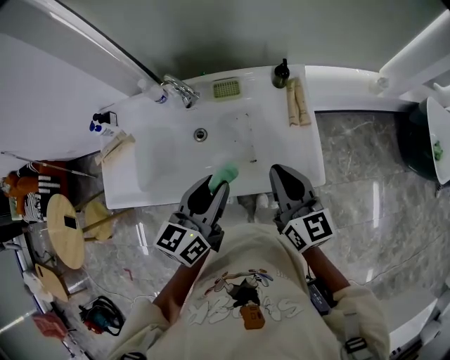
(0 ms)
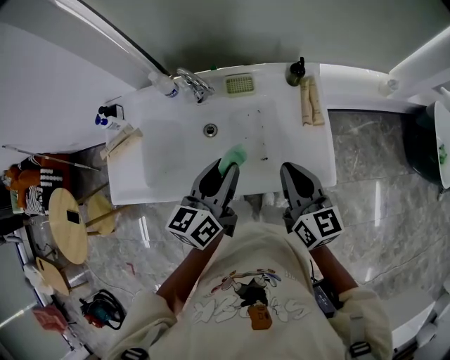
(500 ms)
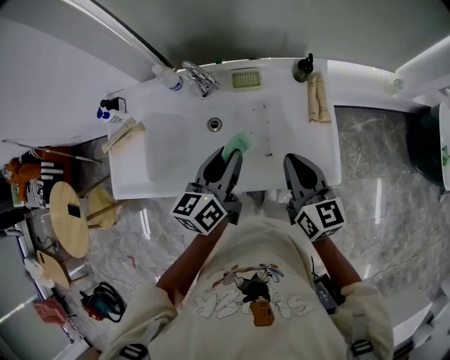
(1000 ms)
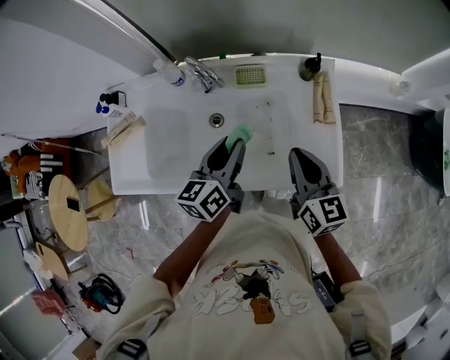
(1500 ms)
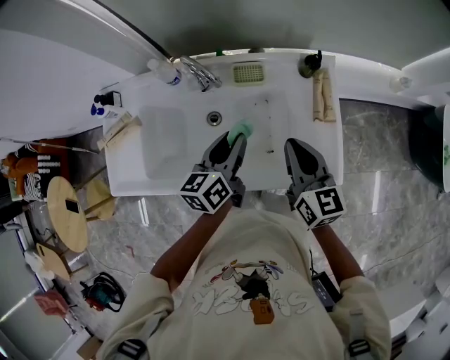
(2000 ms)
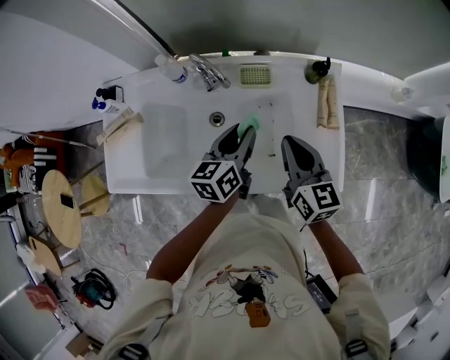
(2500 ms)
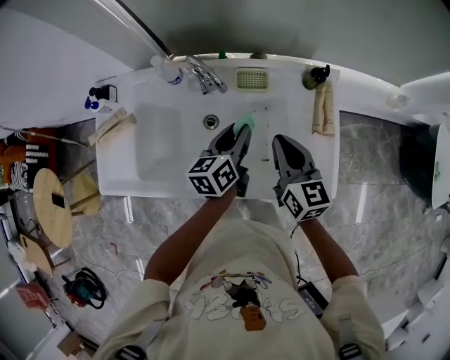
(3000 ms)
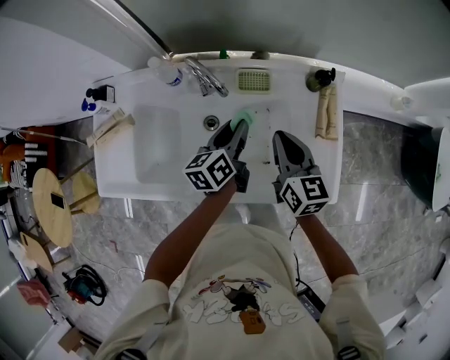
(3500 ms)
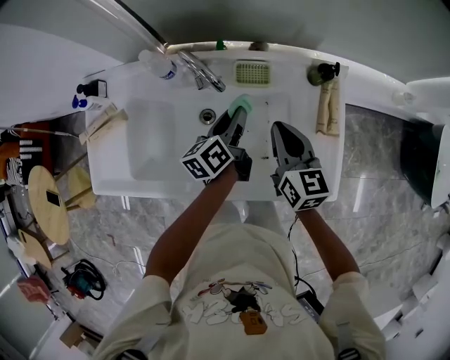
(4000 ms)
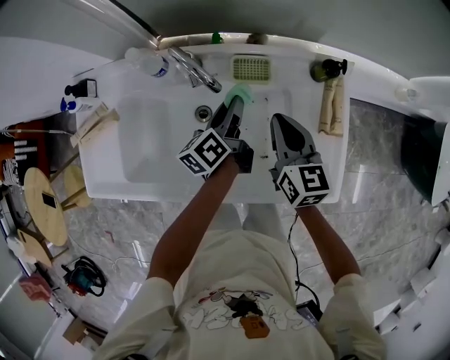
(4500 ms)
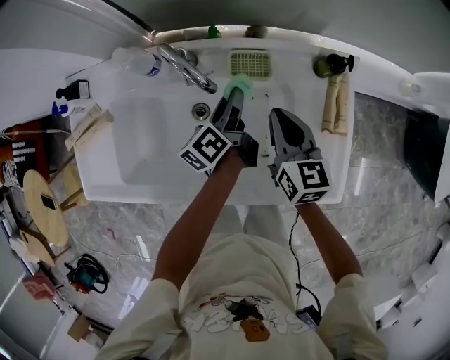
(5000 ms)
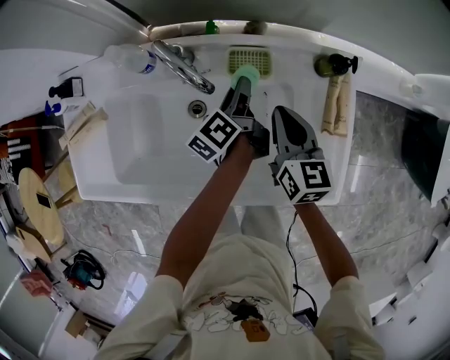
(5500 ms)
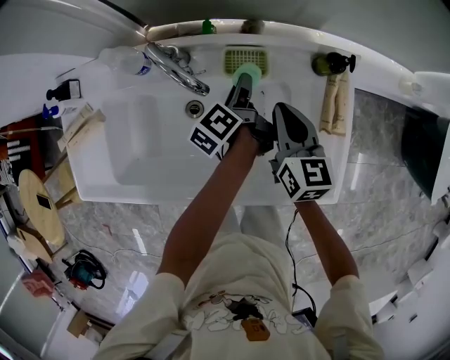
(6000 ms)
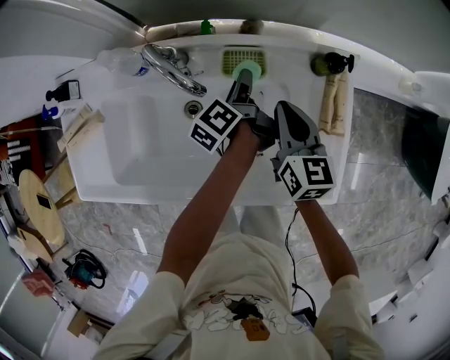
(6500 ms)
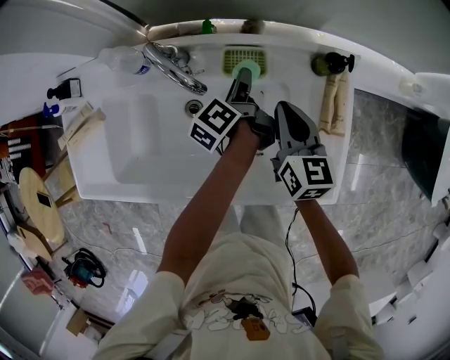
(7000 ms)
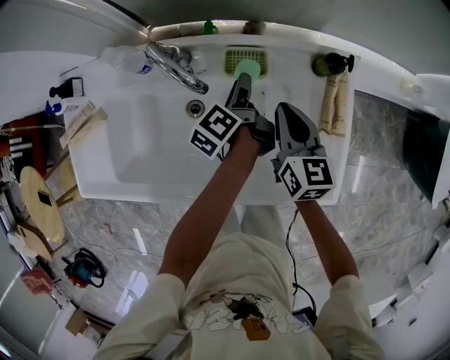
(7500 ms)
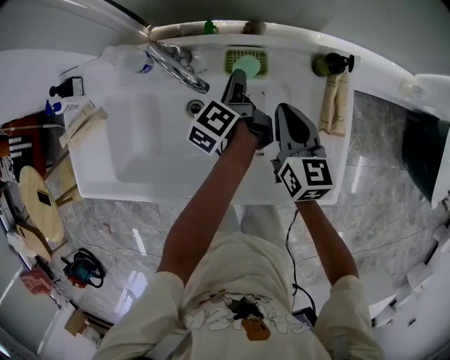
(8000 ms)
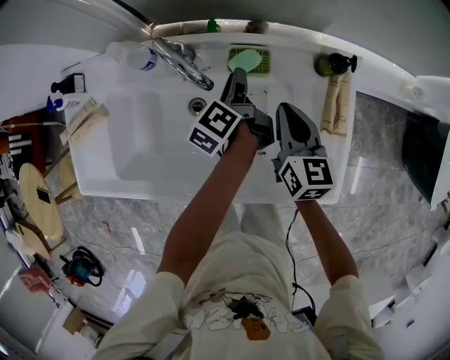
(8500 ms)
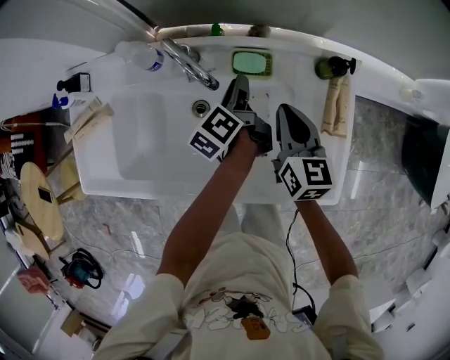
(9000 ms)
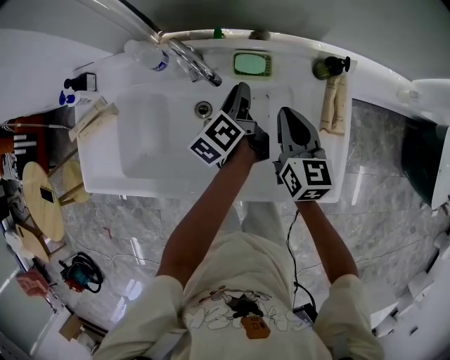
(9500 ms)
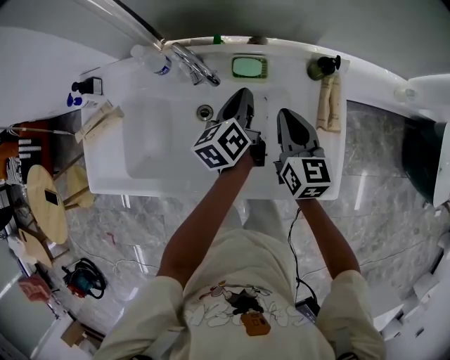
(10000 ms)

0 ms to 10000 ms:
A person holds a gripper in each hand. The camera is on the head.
0 ms to 2000 ms: The left gripper goes some 15 cm forward and downward; the right gripper shifts some 10 cm forward and downward.
2000 ms to 4000 ms: The grippers both shift forward and downward by roughly 10 cm. The left gripper swivels about 20 degrees.
4000 ms to 6000 ms: The right gripper is displaced downward by approximately 5 cm. Meanwhile the left gripper heads forward and downward, covering some 10 cm, and turns by some 30 degrees.
6000 ms to 8000 ms: The grippers make only small movements.
8000 ms to 10000 ms: The left gripper heads upward and backward, covering approximately 10 cm, turns by about 30 degrees, and closes.

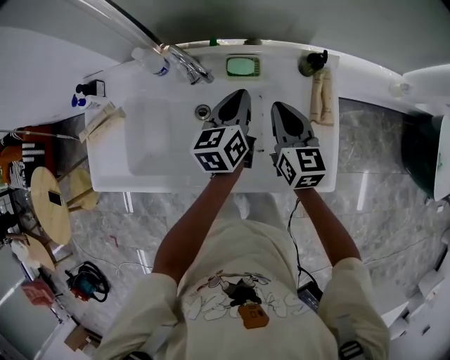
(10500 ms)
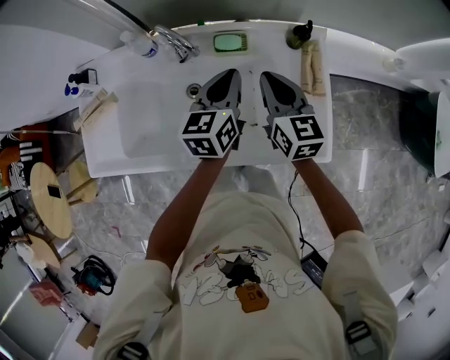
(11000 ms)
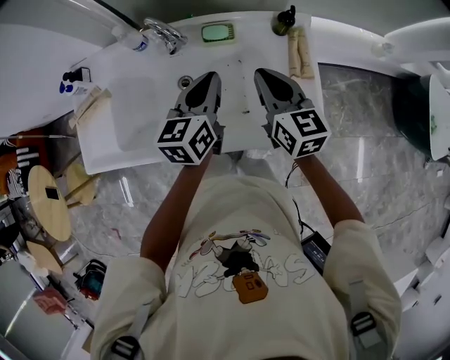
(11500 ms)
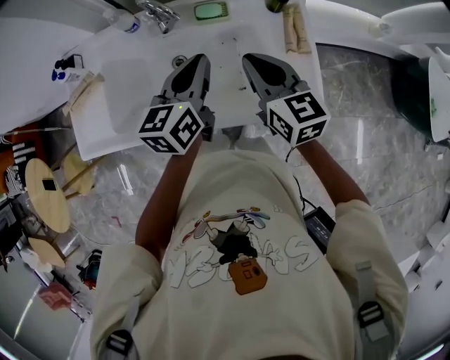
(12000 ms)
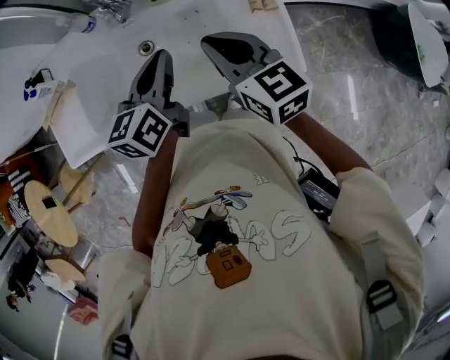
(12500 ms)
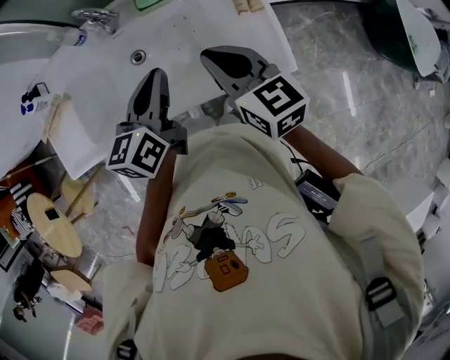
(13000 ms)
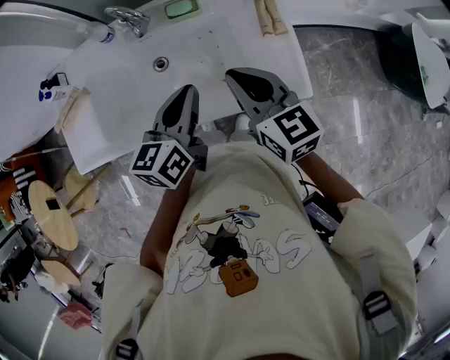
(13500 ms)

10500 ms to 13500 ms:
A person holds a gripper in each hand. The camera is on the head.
10500 ms to 12000 ms: Both grippers move backward and upward, roughly 15 cm.
12000 ms to 13500 ms: Both grippers travel together backward, some 10 cm.

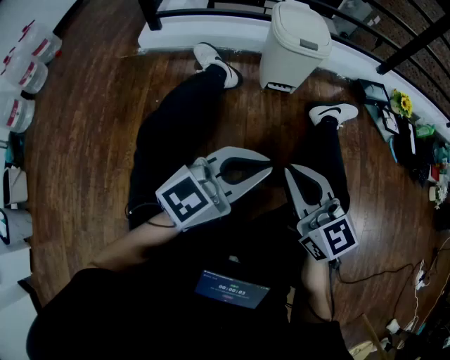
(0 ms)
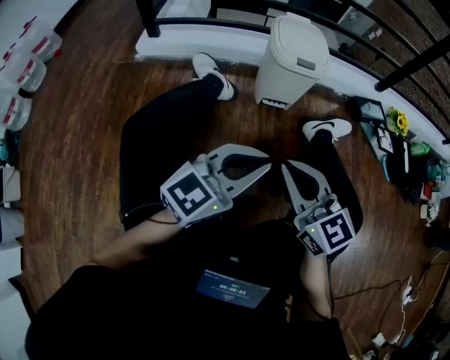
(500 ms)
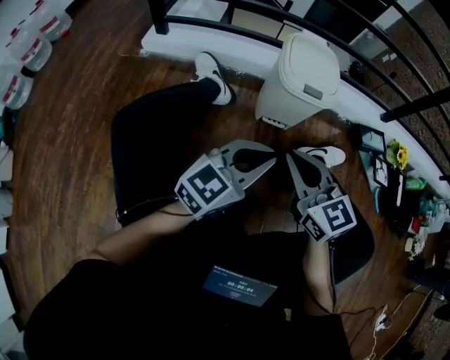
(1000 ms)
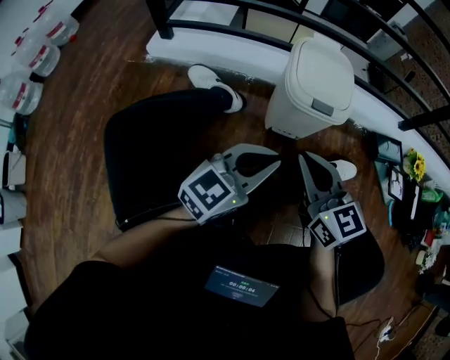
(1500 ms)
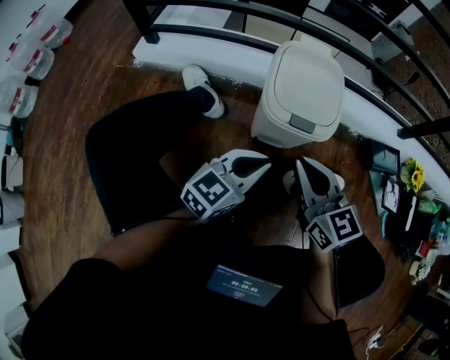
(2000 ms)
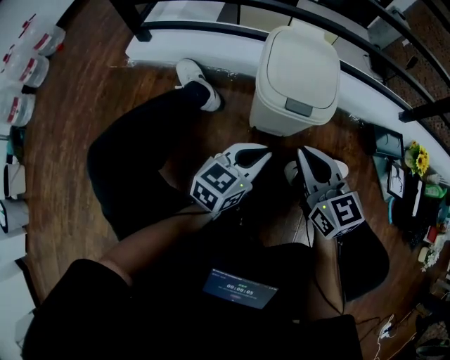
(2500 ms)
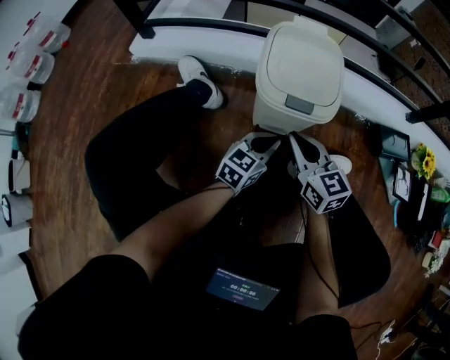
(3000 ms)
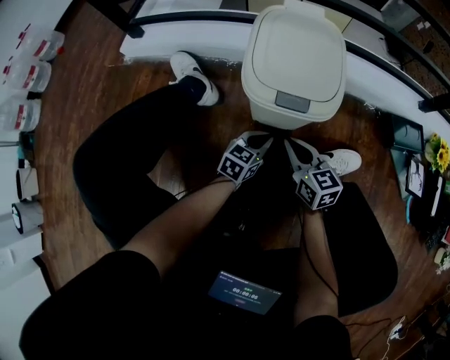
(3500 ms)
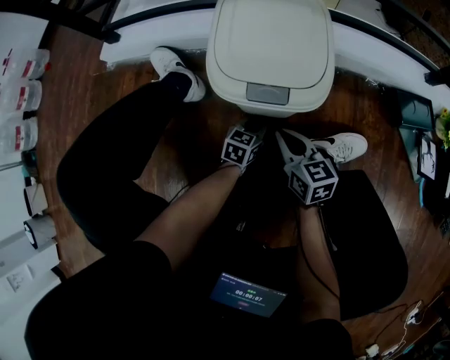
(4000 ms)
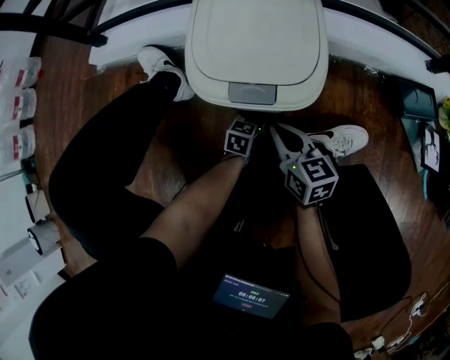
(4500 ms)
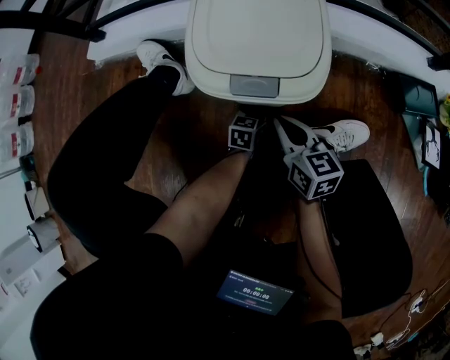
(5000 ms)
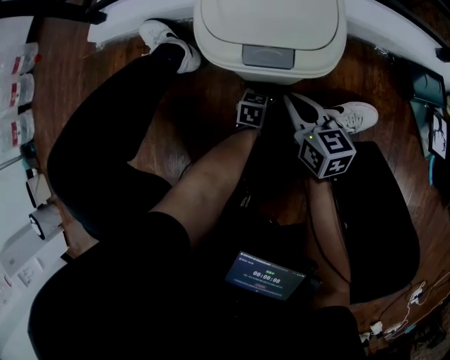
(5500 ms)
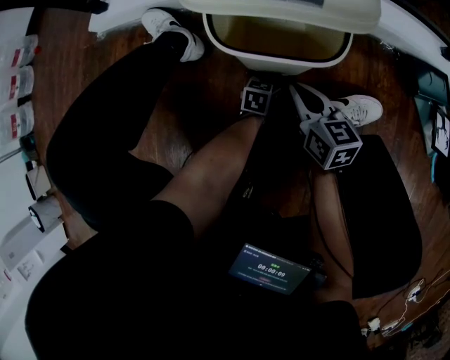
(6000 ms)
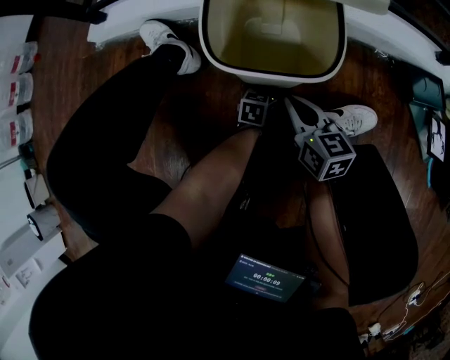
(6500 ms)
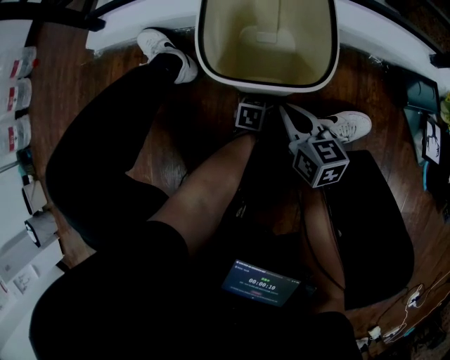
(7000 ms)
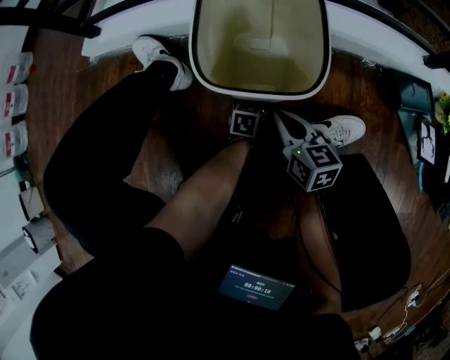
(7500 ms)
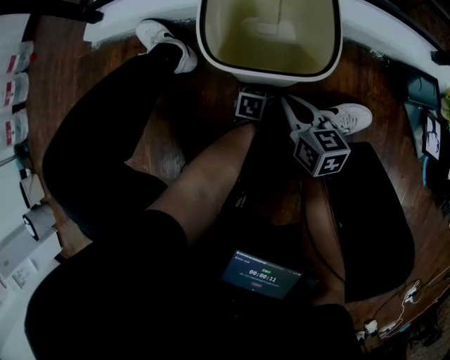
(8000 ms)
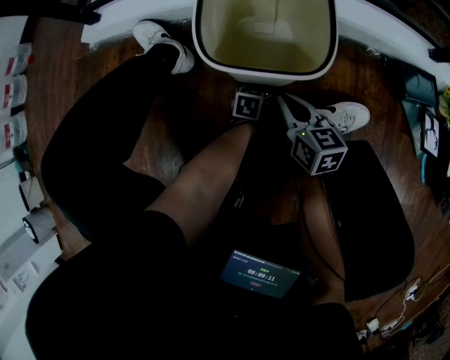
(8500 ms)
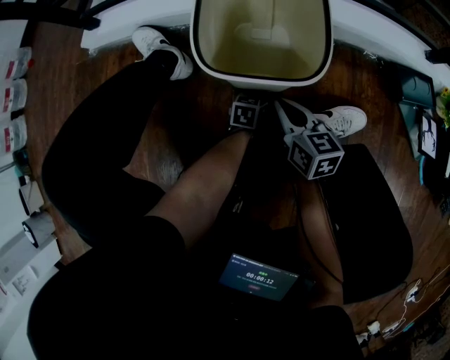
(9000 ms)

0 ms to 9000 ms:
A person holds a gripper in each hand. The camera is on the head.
0 ms to 2000 ms: The two grippers travel together, forward, some 40 cm. The left gripper changes its angle by some 20 degrees.
2000 ms to 4500 ms: The left gripper heads downward and forward, covering roughly 40 cm, and rotates some 30 degrees, while the right gripper is displaced downward by approximately 30 cm, and rotates approximately 20 degrees.
4500 ms to 7000 ms: There are only small adjustments of the grippers.
7000 ms to 9000 ms: Neither gripper changes place.

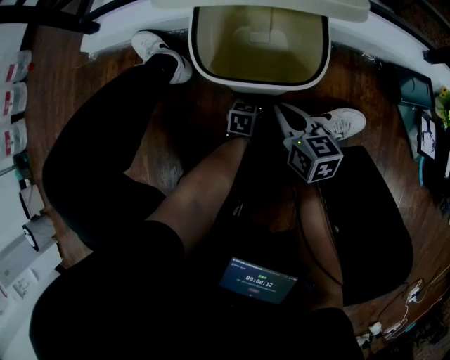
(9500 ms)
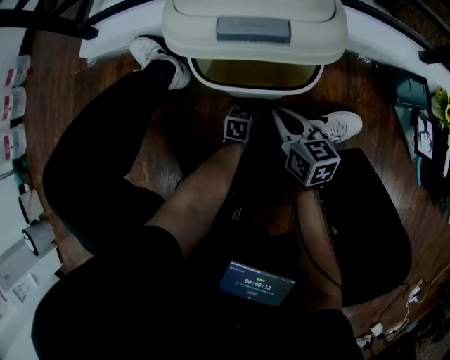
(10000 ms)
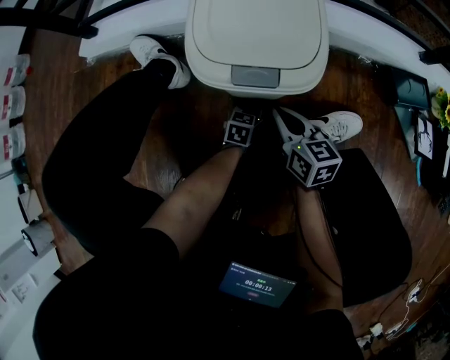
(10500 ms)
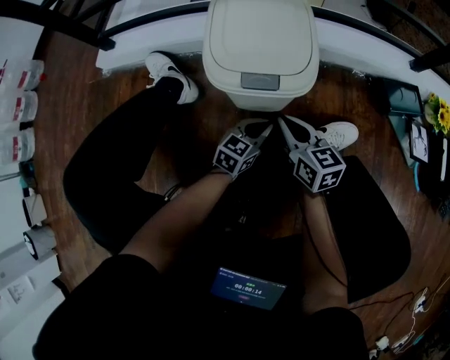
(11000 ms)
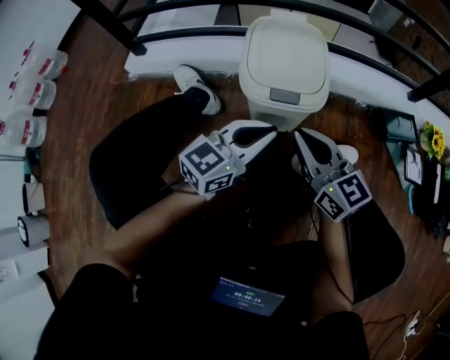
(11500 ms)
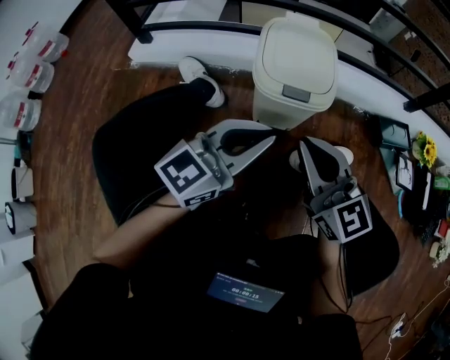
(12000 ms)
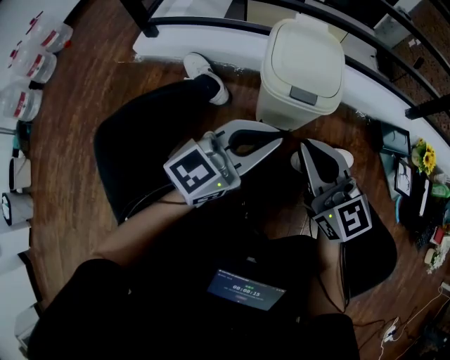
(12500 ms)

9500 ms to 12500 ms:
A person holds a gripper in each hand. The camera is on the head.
9500 ms to 11000 ms: The left gripper travels upward and backward by approximately 15 cm, and turns by roughly 30 degrees; the right gripper goes some 5 cm upward.
11000 ms to 12500 ms: The right gripper shifts roughly 25 cm upward and backward, and changes its angle by some 30 degrees. The left gripper shifts about 35 cm upward, and changes its angle by approximately 30 degrees.

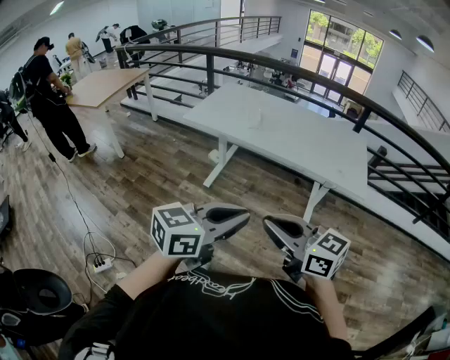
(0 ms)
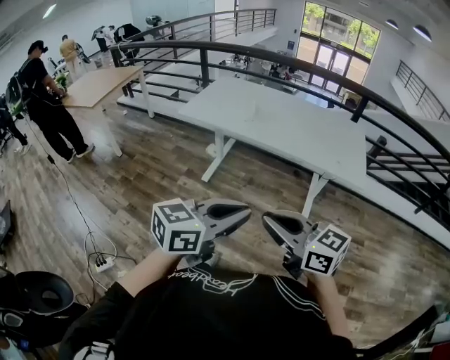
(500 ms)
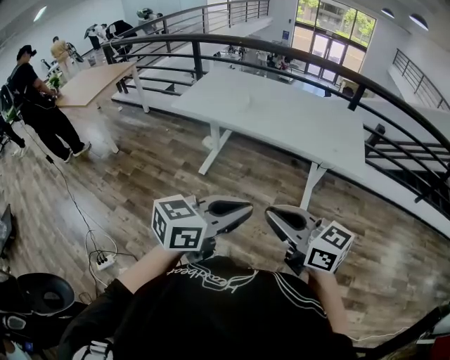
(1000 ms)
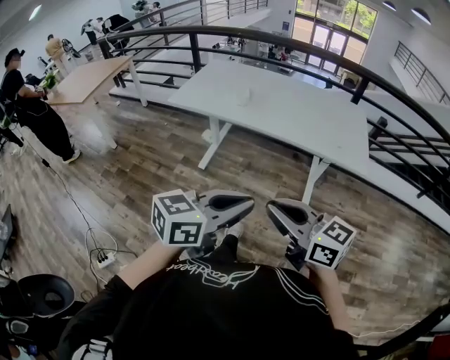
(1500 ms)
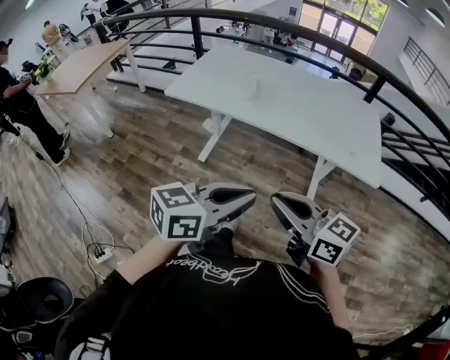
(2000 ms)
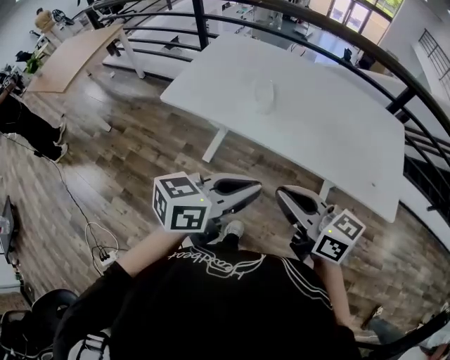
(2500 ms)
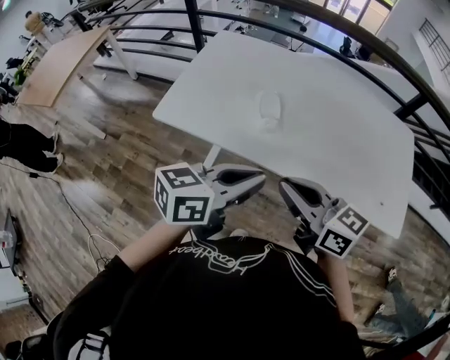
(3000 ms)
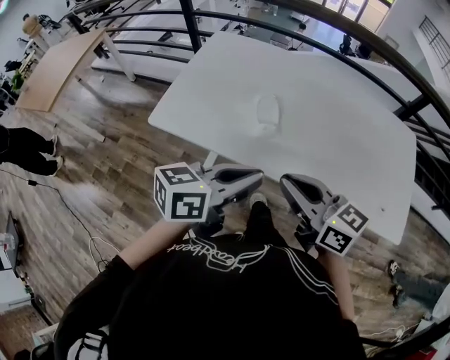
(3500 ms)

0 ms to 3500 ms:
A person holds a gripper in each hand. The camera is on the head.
0 ms to 2000 ms: Both grippers move forward, approximately 15 cm.
2000 ms to 3500 ms: The two grippers go some 40 cm forward.
